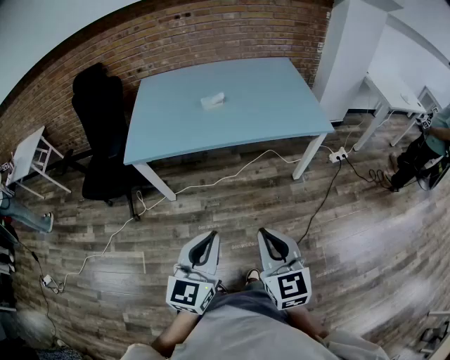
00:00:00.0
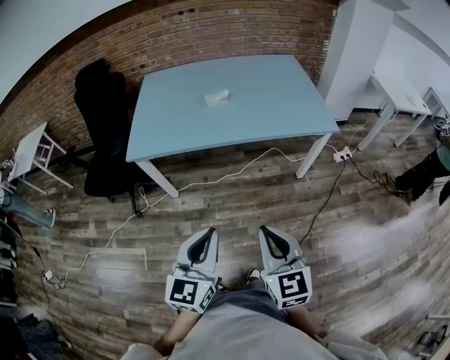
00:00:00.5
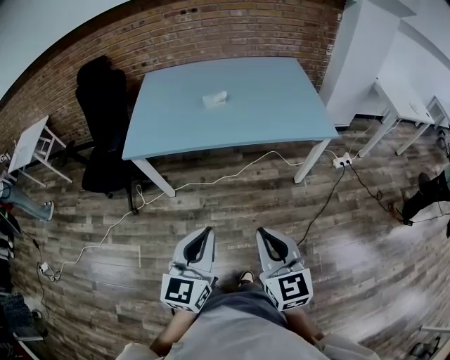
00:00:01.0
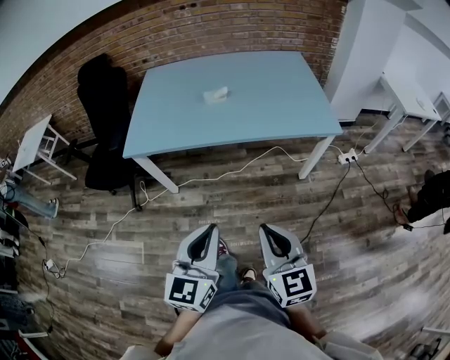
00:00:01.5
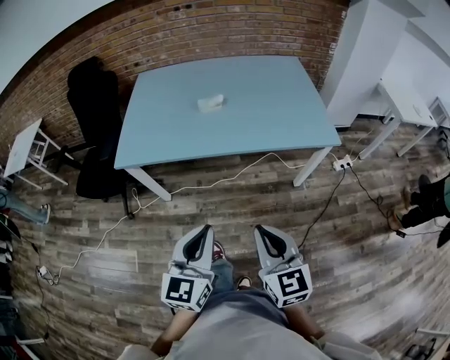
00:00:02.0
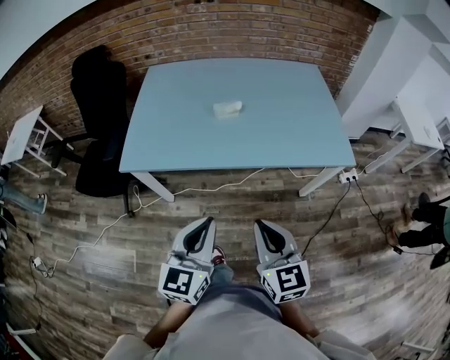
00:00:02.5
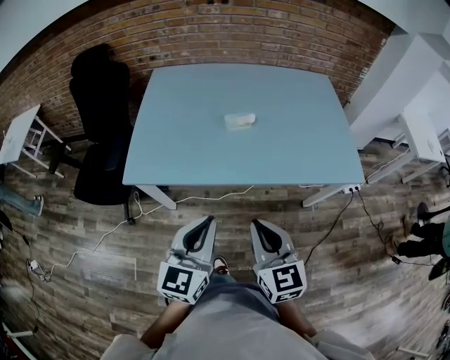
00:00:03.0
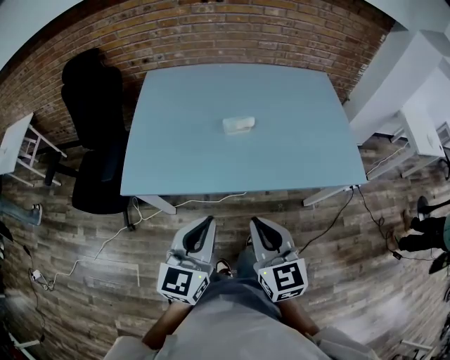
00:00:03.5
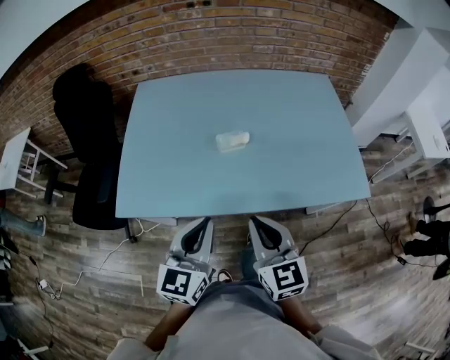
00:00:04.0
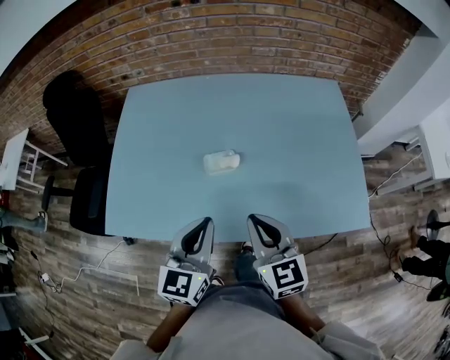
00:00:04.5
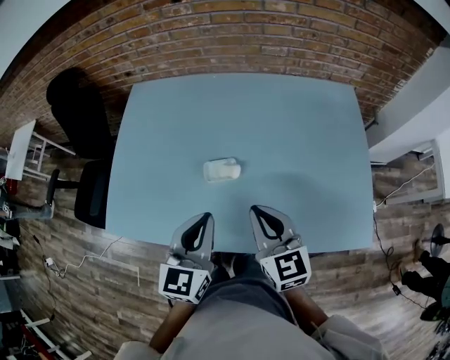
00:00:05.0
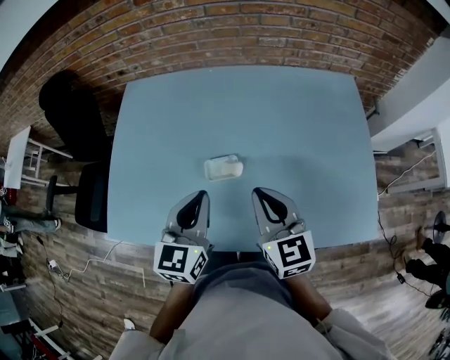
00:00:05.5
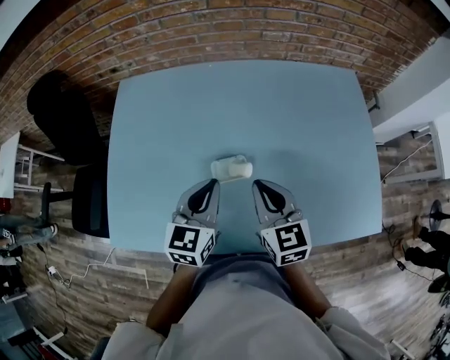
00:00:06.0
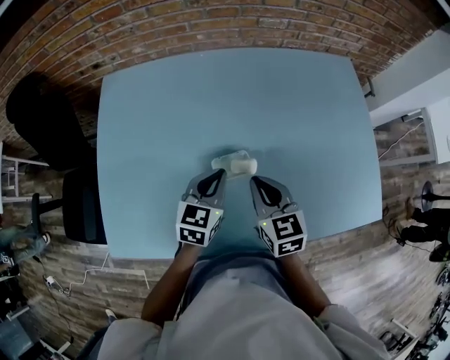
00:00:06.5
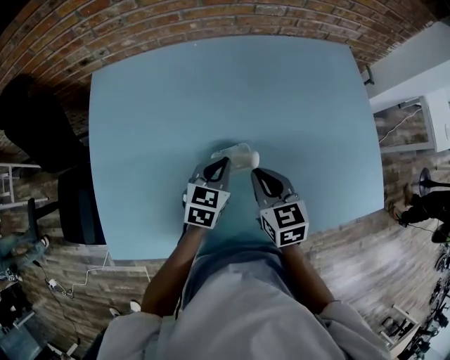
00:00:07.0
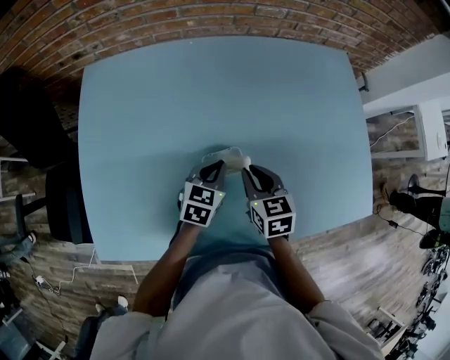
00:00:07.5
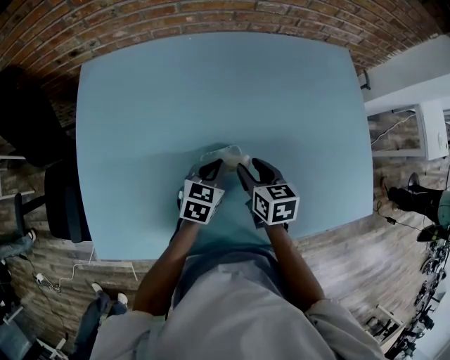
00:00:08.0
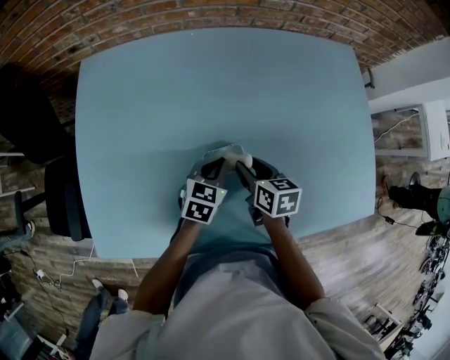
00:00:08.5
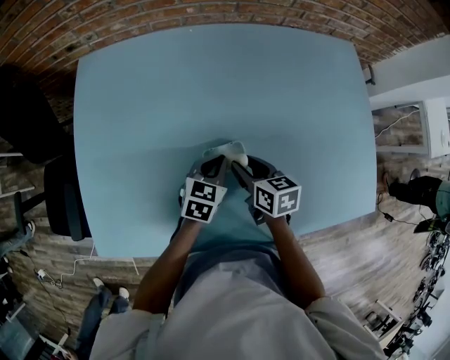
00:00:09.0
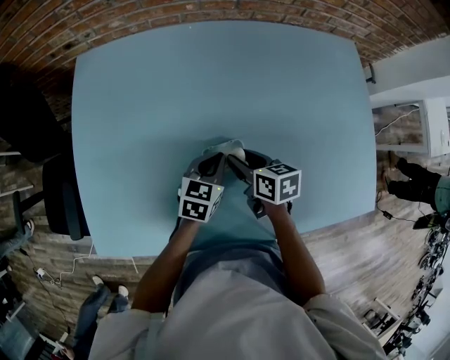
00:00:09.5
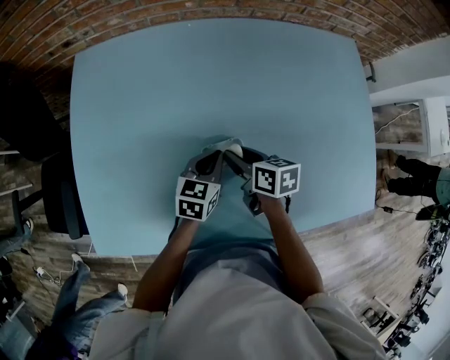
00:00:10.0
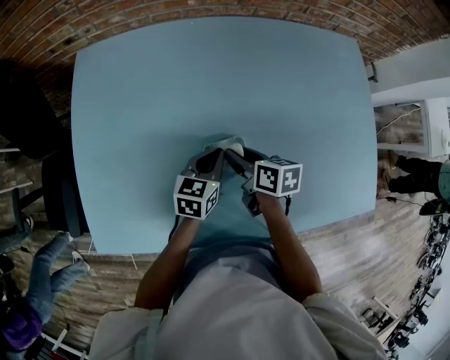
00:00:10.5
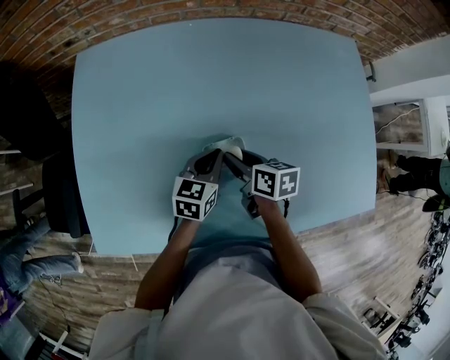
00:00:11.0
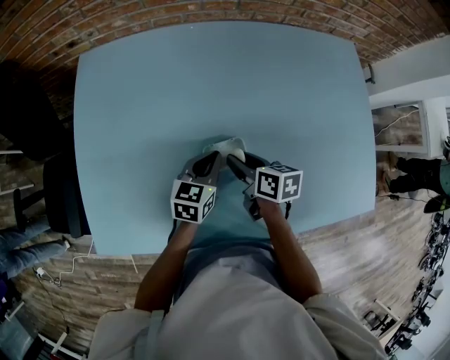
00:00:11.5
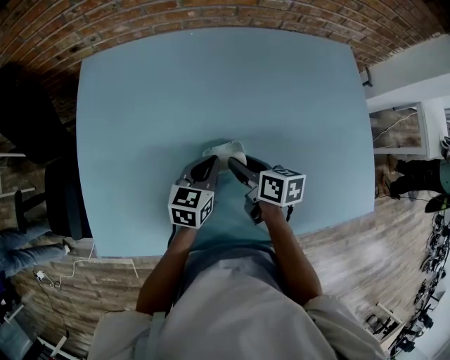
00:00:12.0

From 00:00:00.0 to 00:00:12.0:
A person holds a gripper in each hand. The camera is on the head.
From 00:00:00.0 to 00:00:02.0: The two grippers go roughly 10 cm forward.
From 00:00:02.0 to 00:00:04.0: Both grippers move forward, approximately 30 cm.
From 00:00:04.0 to 00:00:06.0: Both grippers move forward, about 30 cm.
From 00:00:06.0 to 00:00:08.0: Both grippers move downward, roughly 15 cm. The left gripper turns by about 20 degrees. The right gripper rotates approximately 30 degrees, and opens.
From 00:00:08.0 to 00:00:10.0: The right gripper changes place by approximately 5 cm, and swivels about 20 degrees.
From 00:00:10.0 to 00:00:12.0: The grippers move only a little.

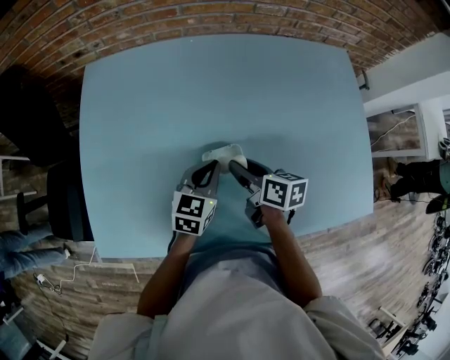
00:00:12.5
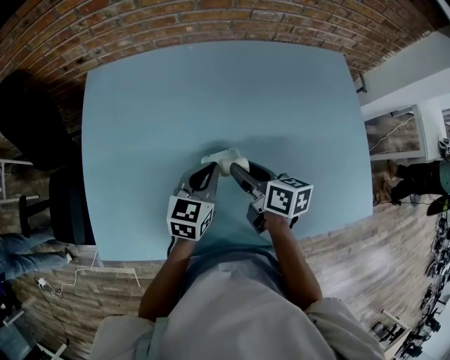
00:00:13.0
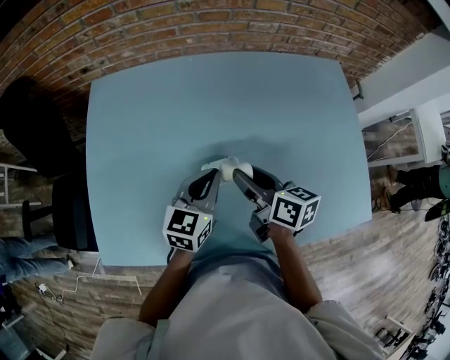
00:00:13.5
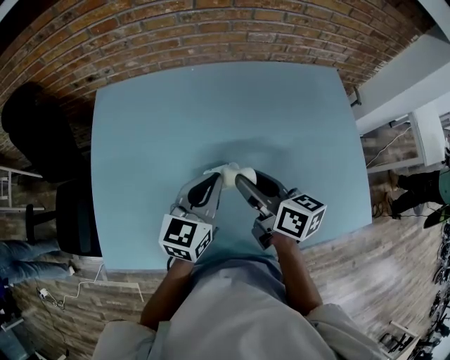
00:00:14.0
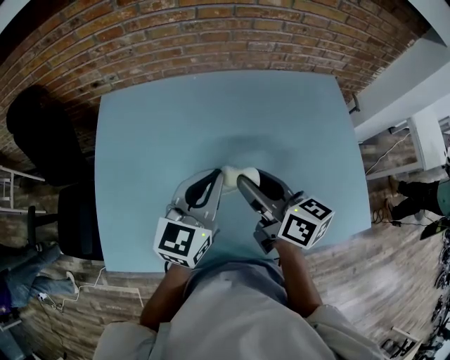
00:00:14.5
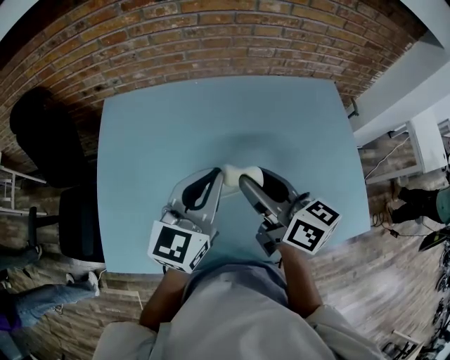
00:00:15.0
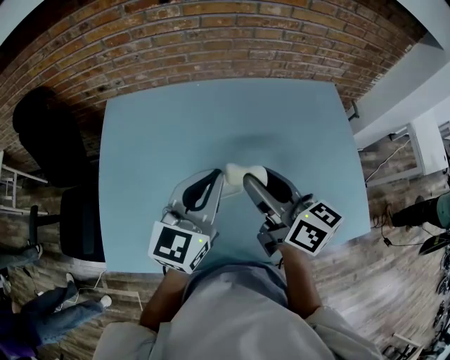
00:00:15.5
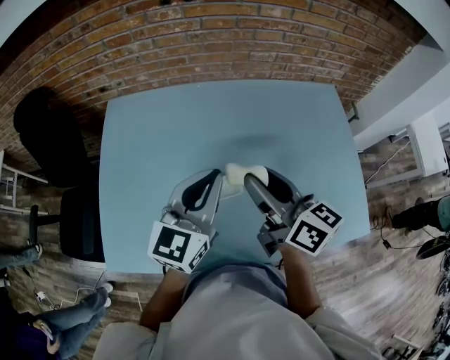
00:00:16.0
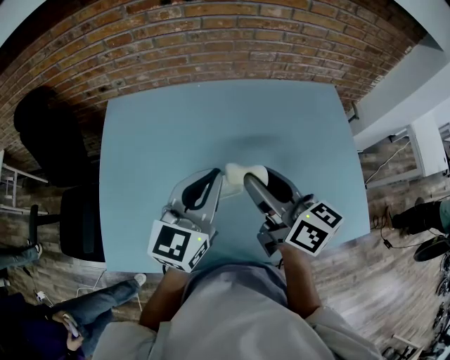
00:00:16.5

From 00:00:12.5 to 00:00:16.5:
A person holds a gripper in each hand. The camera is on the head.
From 00:00:12.5 to 00:00:14.5: Both grippers travel together upward, roughly 20 cm. The left gripper rotates some 20 degrees. The right gripper rotates about 20 degrees.
From 00:00:14.5 to 00:00:16.5: The right gripper heads upward, covering approximately 5 cm.

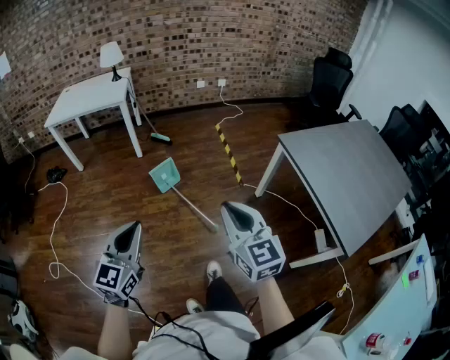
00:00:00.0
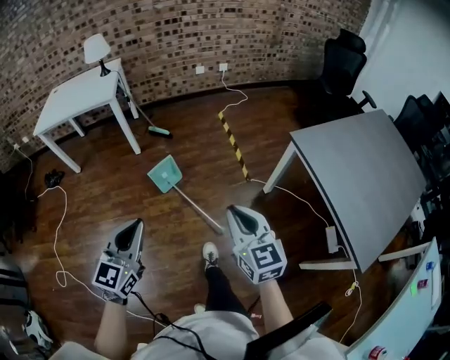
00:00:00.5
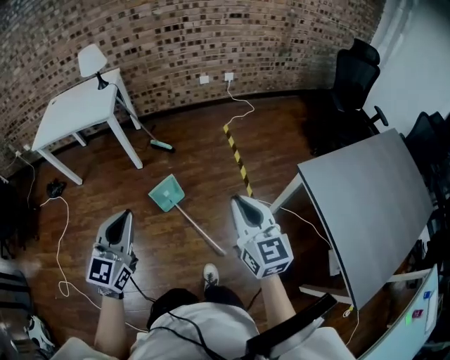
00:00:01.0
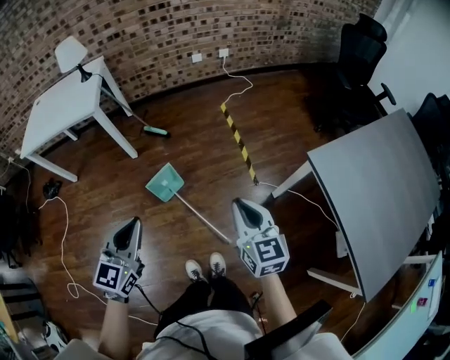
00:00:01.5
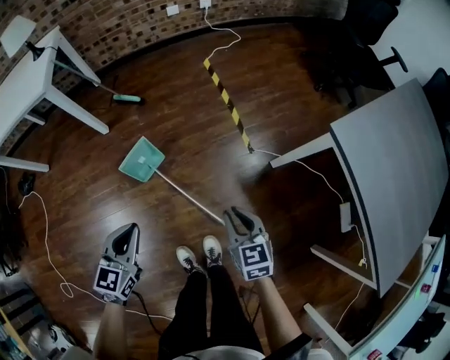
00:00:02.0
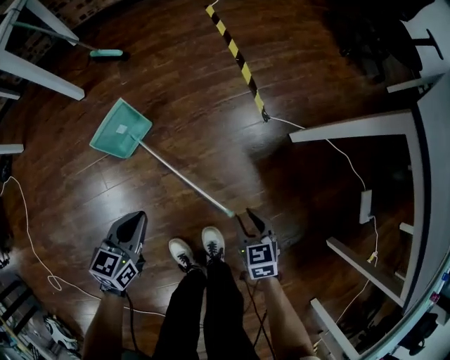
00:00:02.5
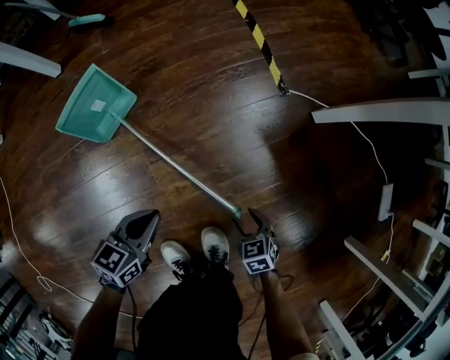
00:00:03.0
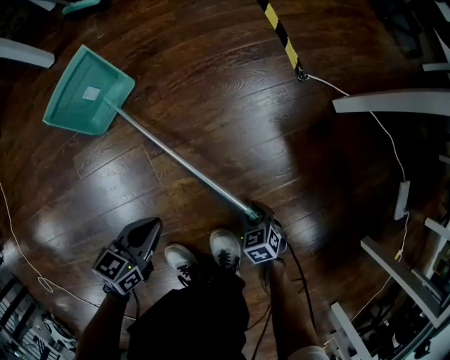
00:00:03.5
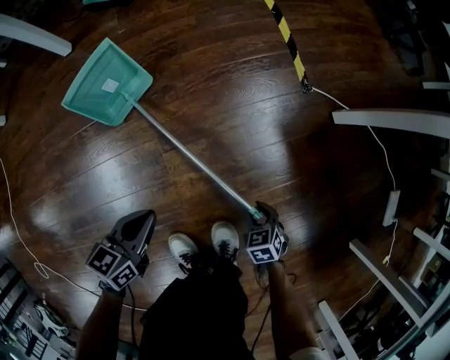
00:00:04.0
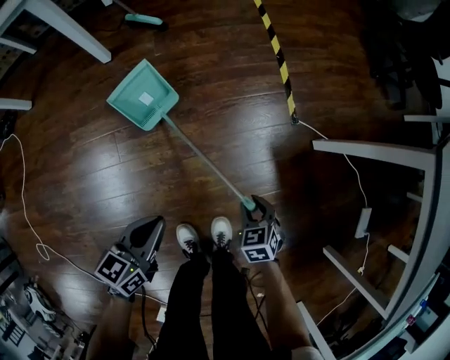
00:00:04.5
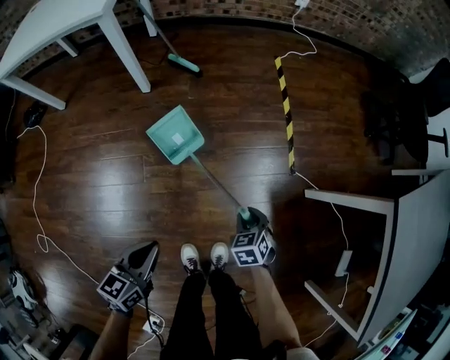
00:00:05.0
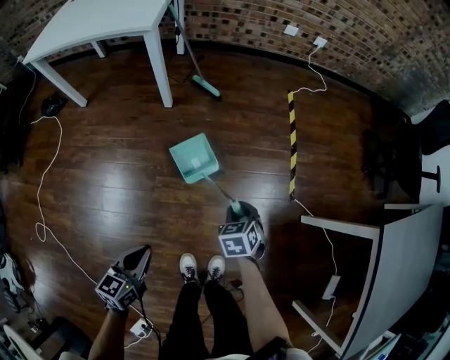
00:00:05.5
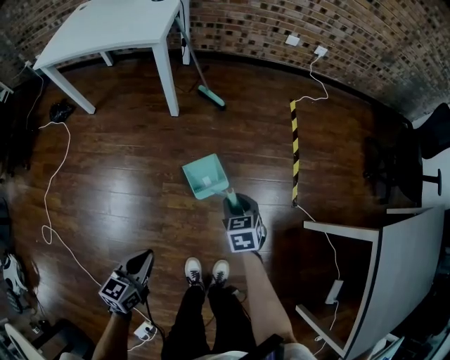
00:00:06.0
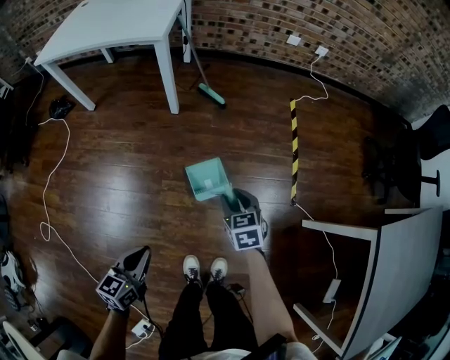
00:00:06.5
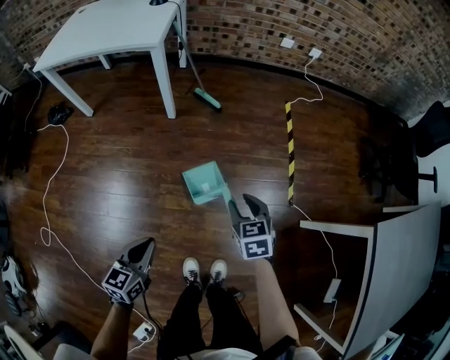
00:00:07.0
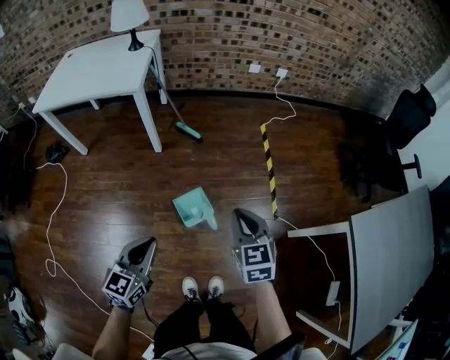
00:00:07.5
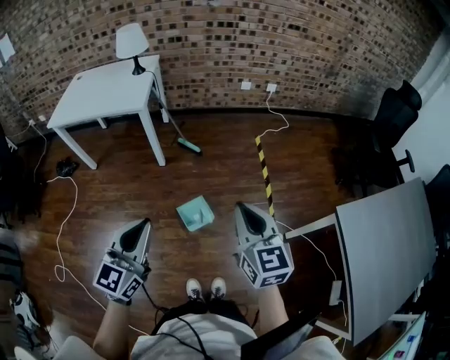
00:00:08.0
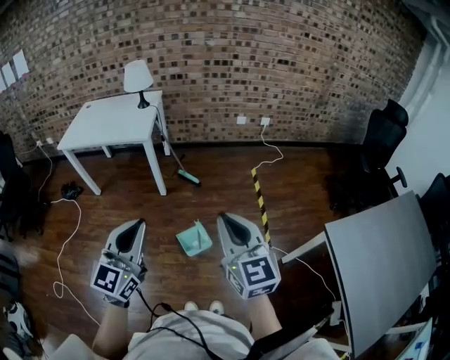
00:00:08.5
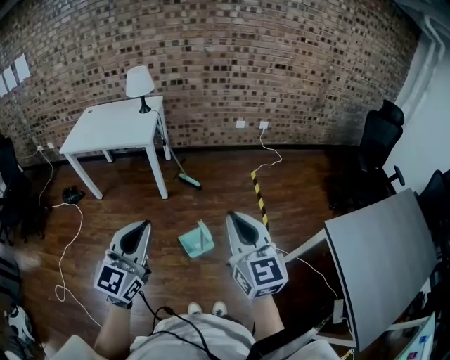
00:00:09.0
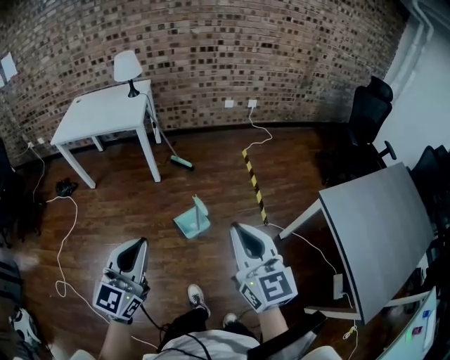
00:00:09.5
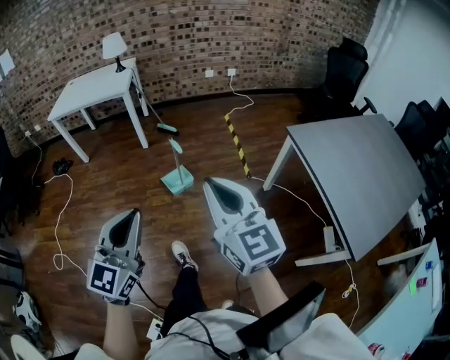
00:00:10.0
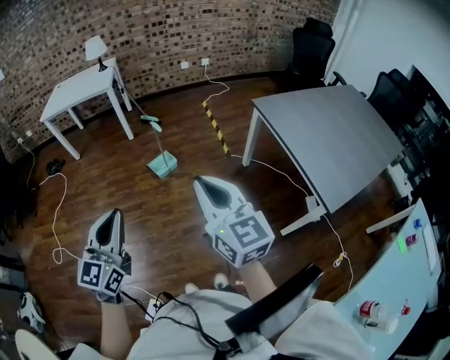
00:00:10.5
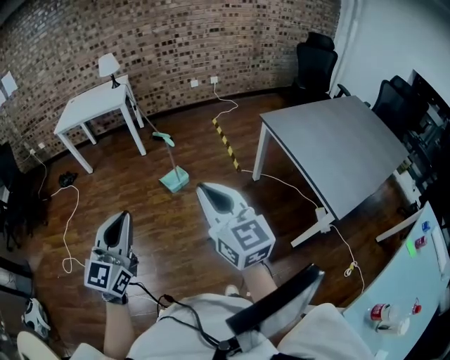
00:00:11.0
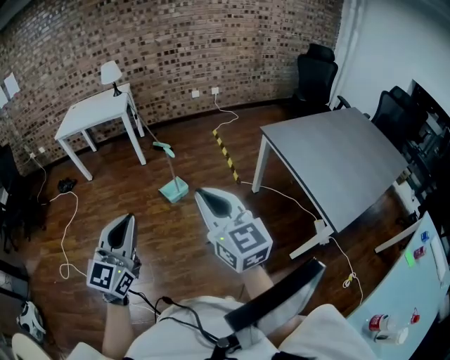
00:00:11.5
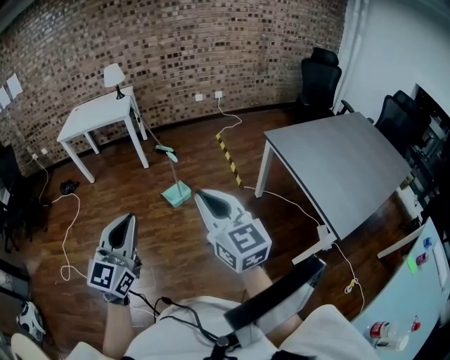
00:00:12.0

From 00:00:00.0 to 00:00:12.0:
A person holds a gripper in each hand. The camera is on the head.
From 00:00:00.0 to 00:00:02.0: The right gripper swings up and down, roughly 40 cm each way, with 2 reversals, and swivels some 30 degrees, while the left gripper is displaced forward and downward by some 50 cm, and swivels some 20 degrees.
From 00:00:02.0 to 00:00:04.0: Both grippers move downward, roughly 50 cm. The left gripper changes its angle by roughly 30 degrees. Meanwhile the right gripper points its fingers about 40 degrees further downward, and opens and closes again.
From 00:00:04.0 to 00:00:06.0: The left gripper moves upward and to the left, about 50 cm, and swivels some 30 degrees; the right gripper is displaced upward, to the left and forward by about 60 cm, and turns by about 20 degrees.
From 00:00:06.0 to 00:00:08.0: The two grippers go roughly 40 cm upward. The left gripper swivels approximately 40 degrees; the right gripper points its fingers roughly 40 degrees further upward, and closes its fingers.
From 00:00:08.0 to 00:00:10.0: The two grippers travel together, backward, some 40 cm.
From 00:00:10.0 to 00:00:12.0: The grippers both shift backward by approximately 15 cm.
